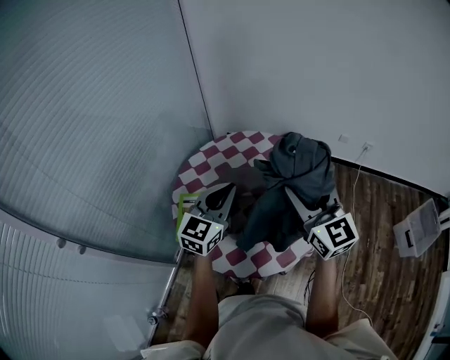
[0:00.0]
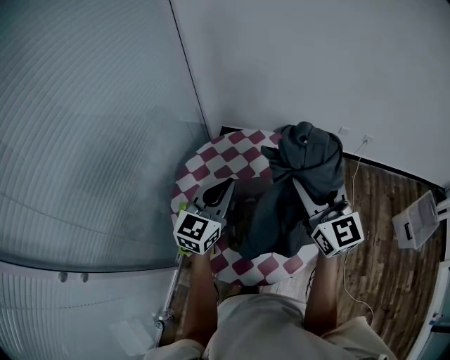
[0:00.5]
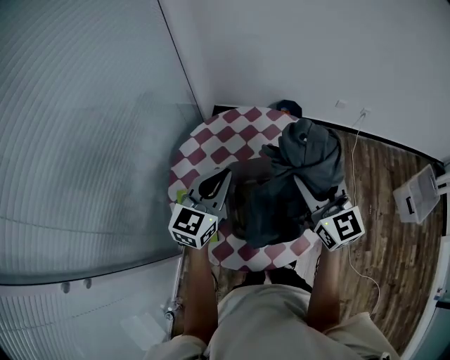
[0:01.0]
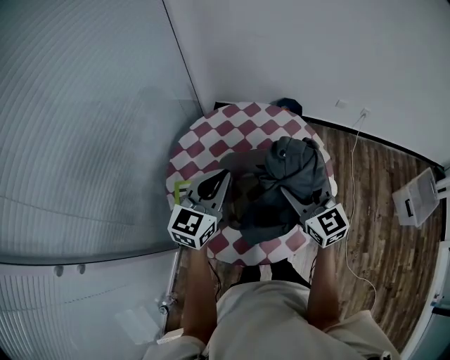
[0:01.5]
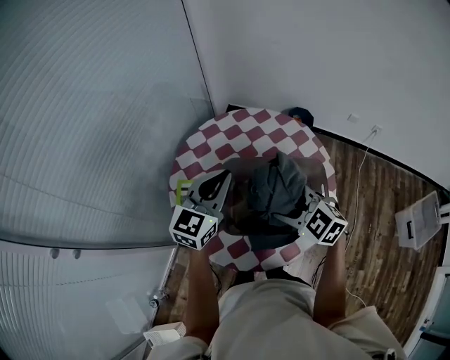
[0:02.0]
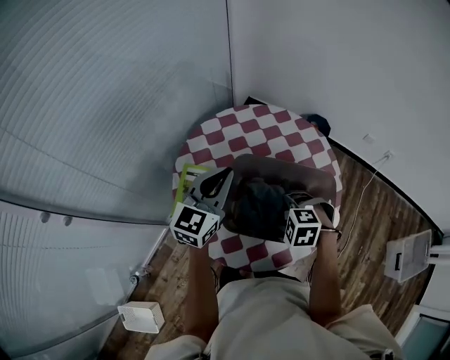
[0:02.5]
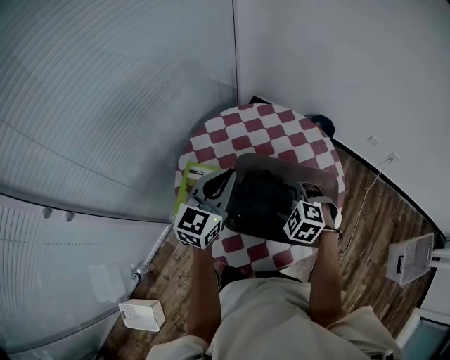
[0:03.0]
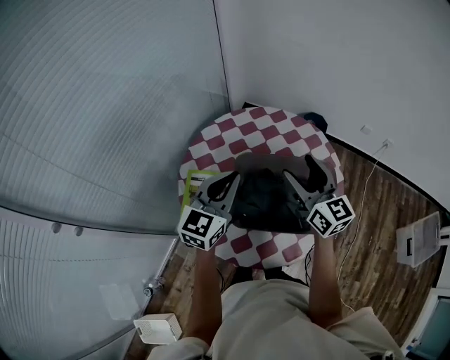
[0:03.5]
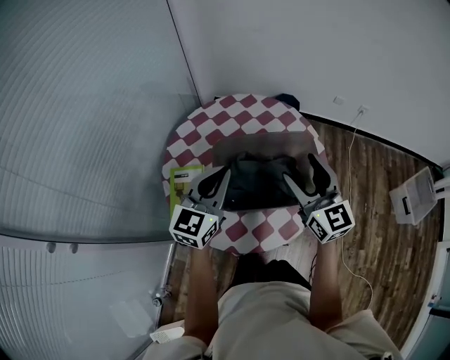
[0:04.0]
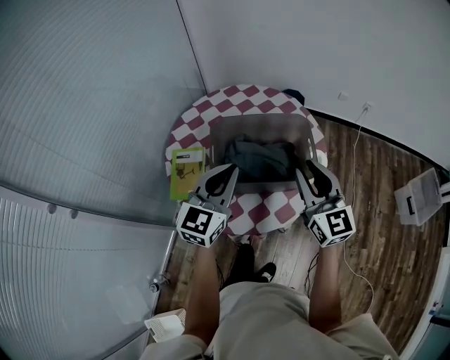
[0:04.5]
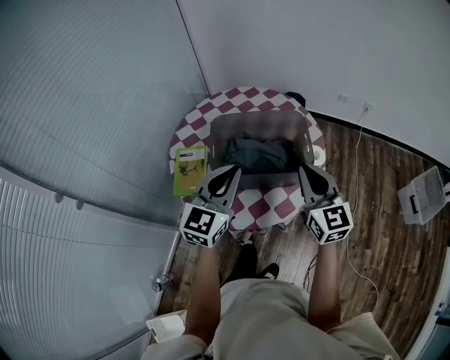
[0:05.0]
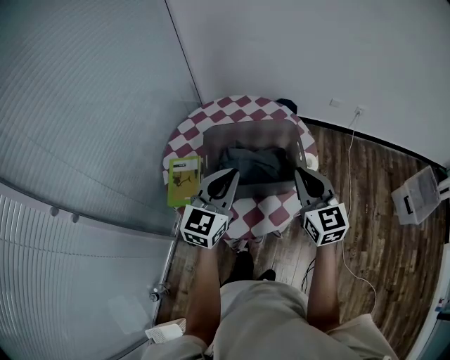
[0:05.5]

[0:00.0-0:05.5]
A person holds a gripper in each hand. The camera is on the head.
0.0 to 2.0 s: The left gripper is displaced forward by roughly 5 cm. The right gripper shifts some 20 cm downward, and points its fingers roughly 40 degrees further downward.
2.0 to 3.5 s: The right gripper travels upward and forward by some 10 cm, angles its fingers upward, by some 40 degrees, and opens its fingers.
3.5 to 5.5 s: The grippers both shift backward and to the right by some 20 cm. The right gripper turns by about 20 degrees, and closes up.

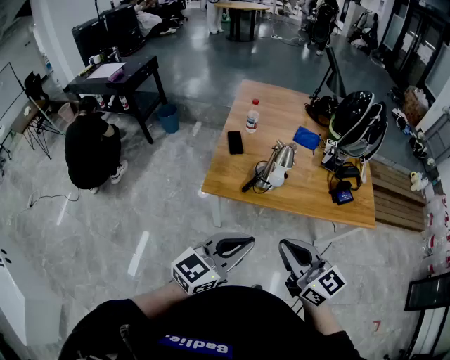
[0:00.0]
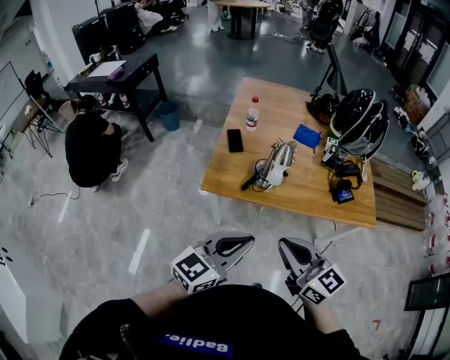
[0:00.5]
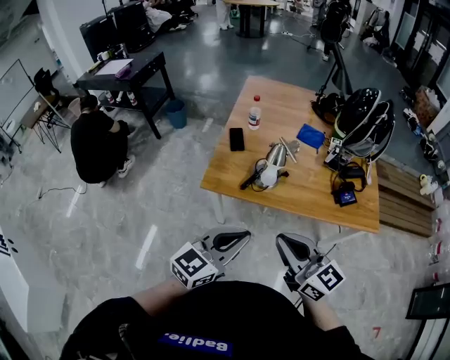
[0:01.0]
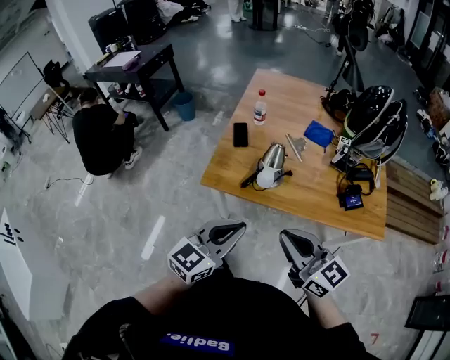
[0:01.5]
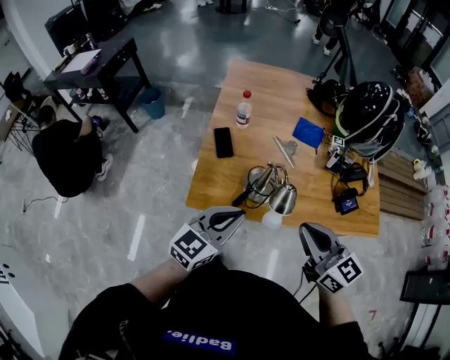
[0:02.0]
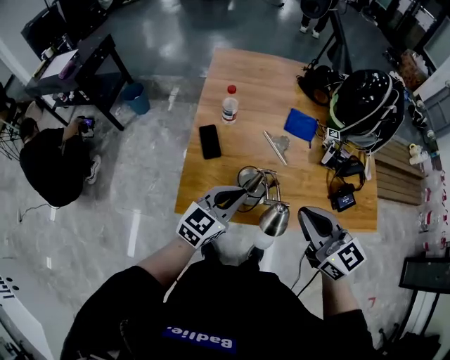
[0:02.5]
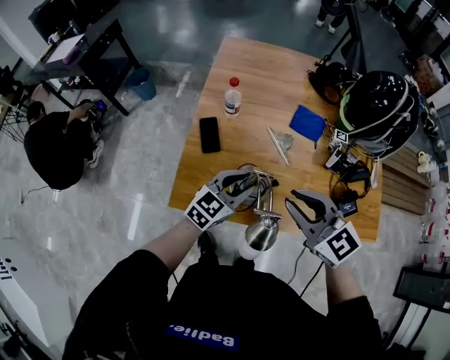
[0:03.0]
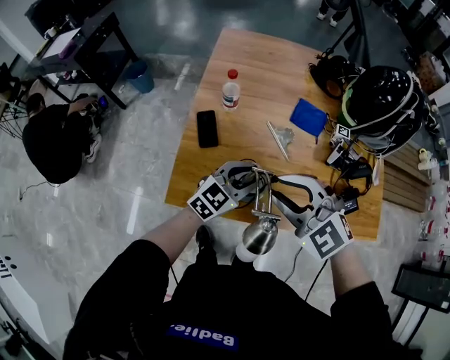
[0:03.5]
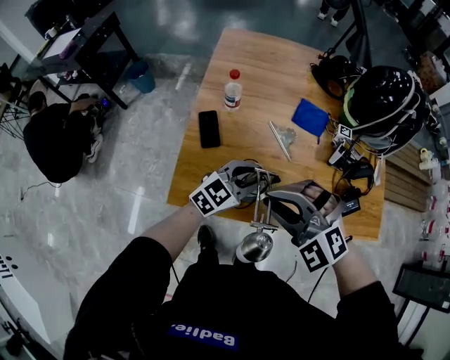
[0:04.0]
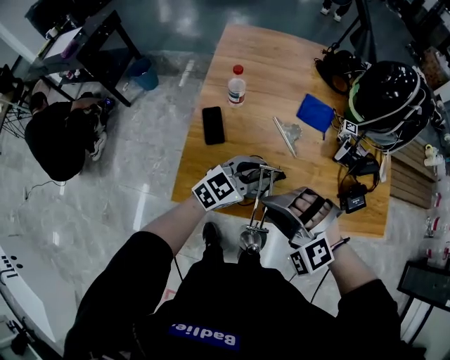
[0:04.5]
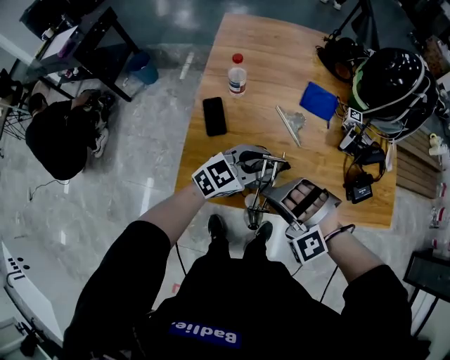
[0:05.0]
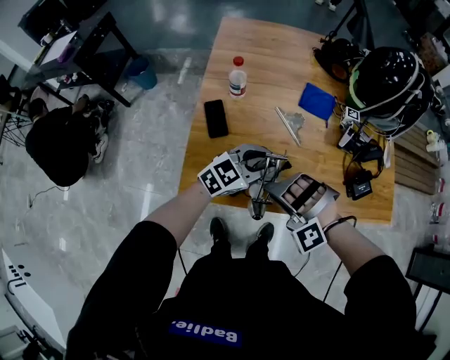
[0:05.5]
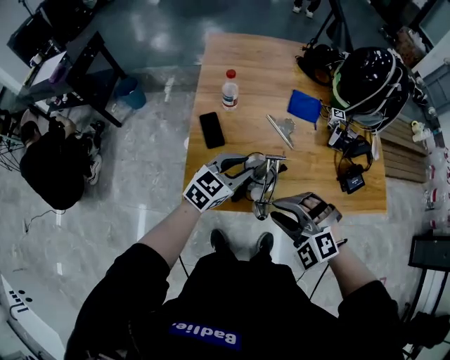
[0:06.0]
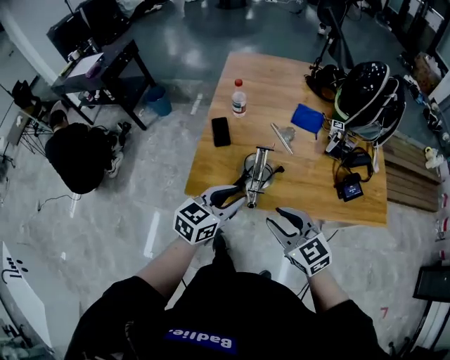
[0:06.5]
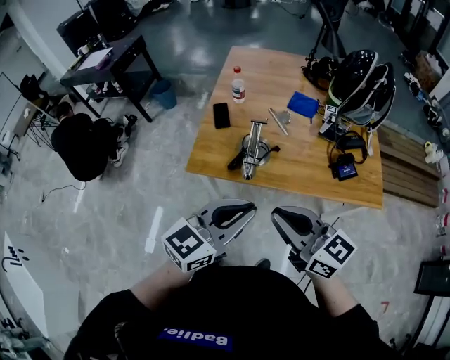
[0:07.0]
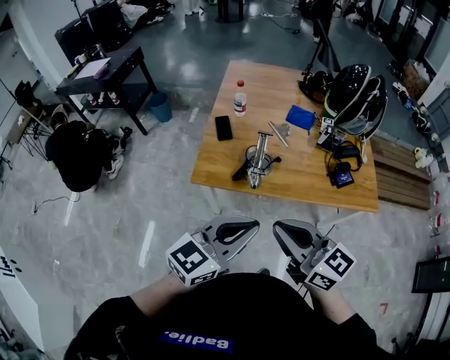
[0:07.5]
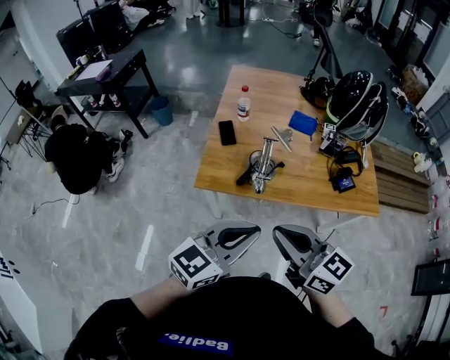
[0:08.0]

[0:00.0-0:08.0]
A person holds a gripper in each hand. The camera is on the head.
0.0 to 2.0 s: The grippers both shift forward by about 20 cm.
2.0 to 4.0 s: The right gripper heads forward and to the left, covering approximately 15 cm, and twists about 60 degrees counterclockwise, seen from behind. The left gripper moves forward, downward and to the right, about 25 cm, and opens its fingers.
4.0 to 6.0 s: The right gripper heads downward and backward, covering about 10 cm. The left gripper travels to the left by approximately 5 cm.
6.0 to 8.0 s: The grippers both shift backward and upward by some 35 cm. The left gripper closes up. The right gripper rolls clockwise, seen from behind, by roughly 60 degrees, and closes its fingers.

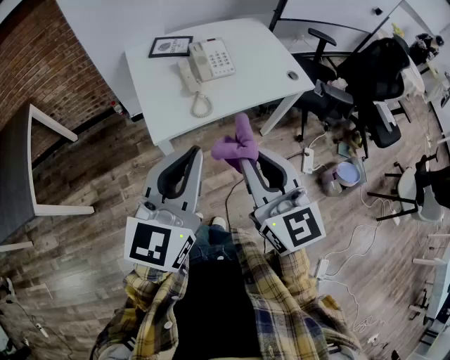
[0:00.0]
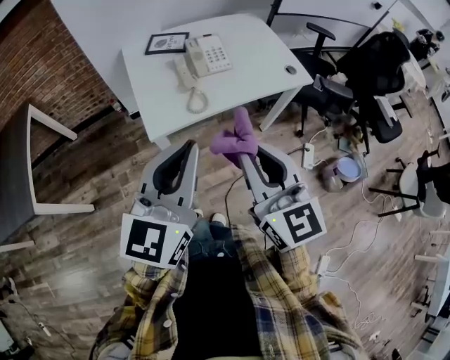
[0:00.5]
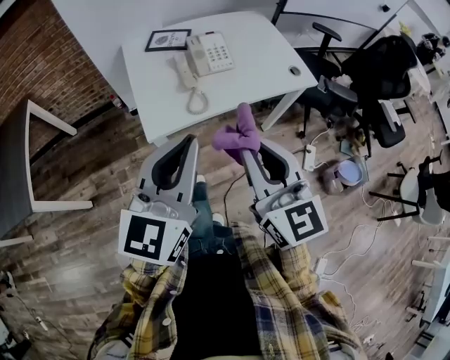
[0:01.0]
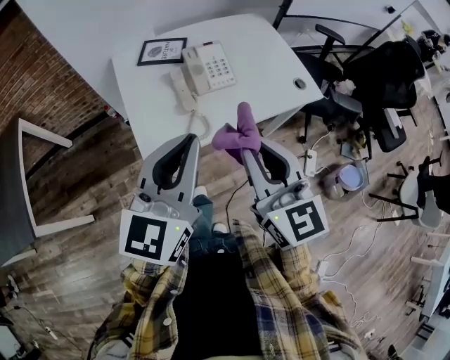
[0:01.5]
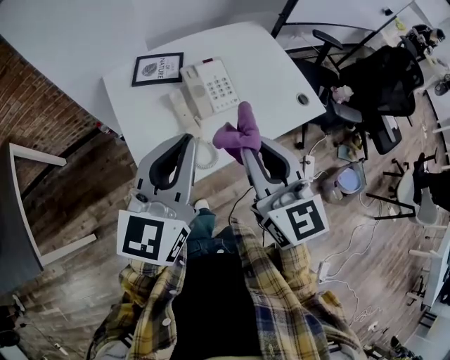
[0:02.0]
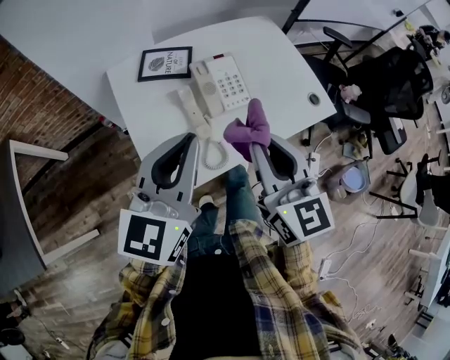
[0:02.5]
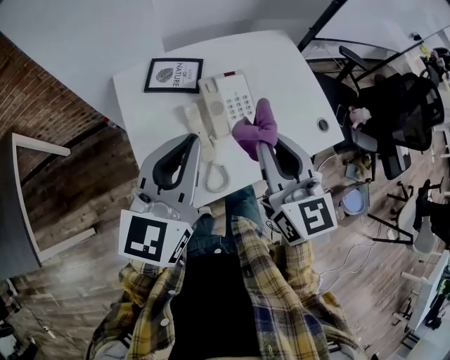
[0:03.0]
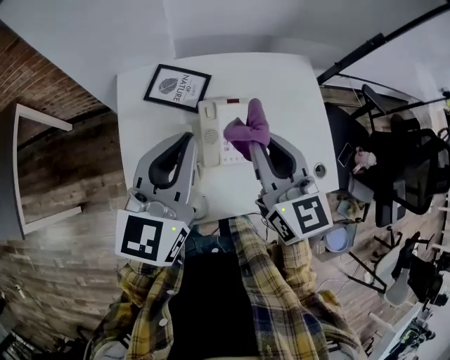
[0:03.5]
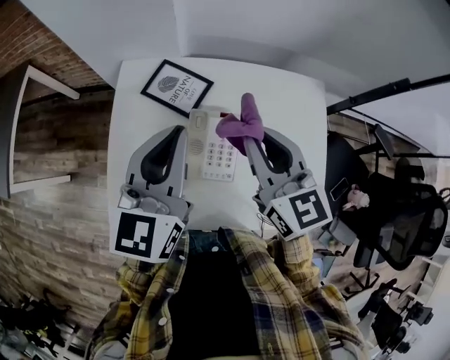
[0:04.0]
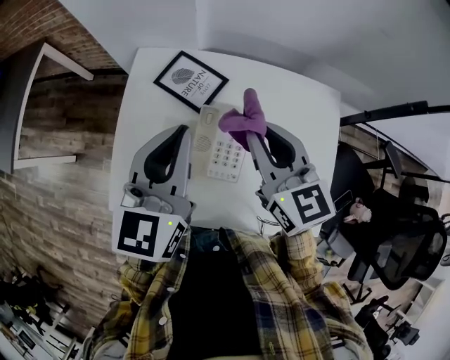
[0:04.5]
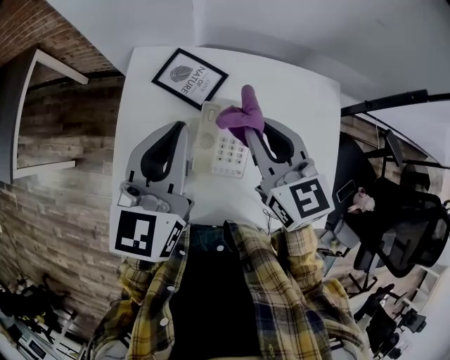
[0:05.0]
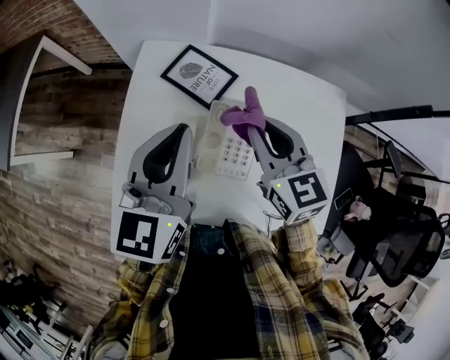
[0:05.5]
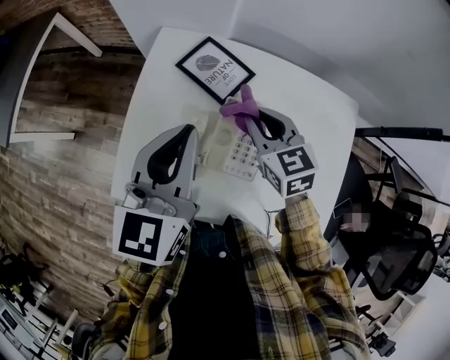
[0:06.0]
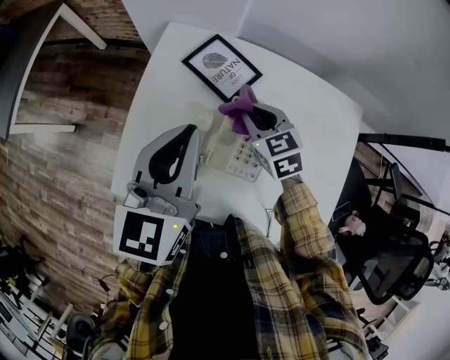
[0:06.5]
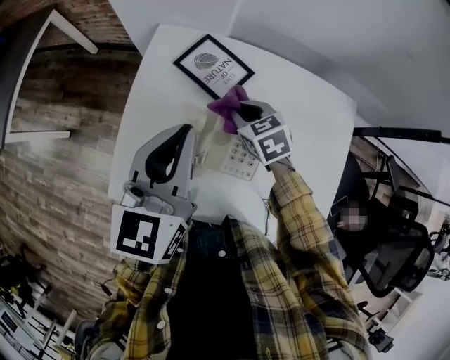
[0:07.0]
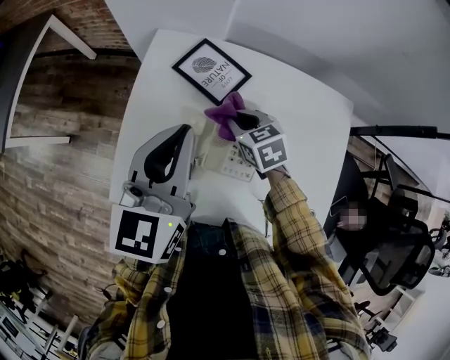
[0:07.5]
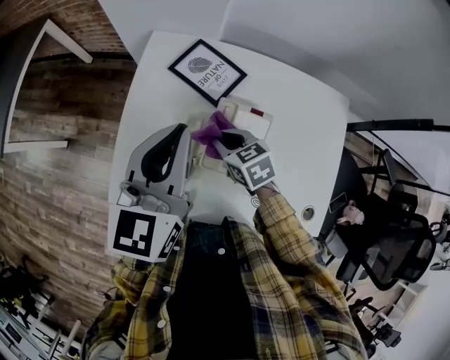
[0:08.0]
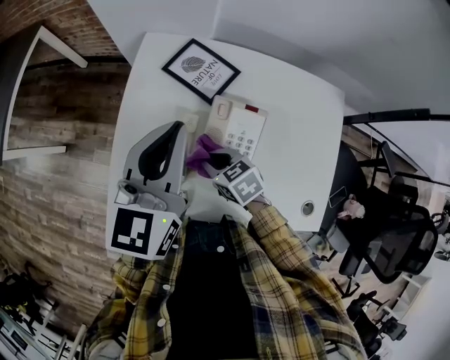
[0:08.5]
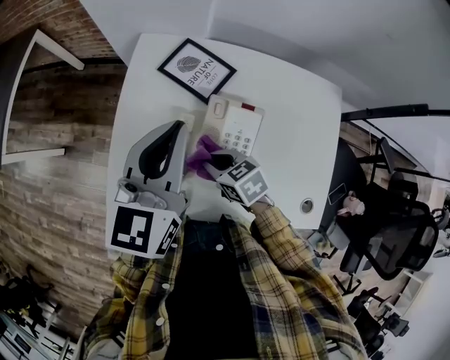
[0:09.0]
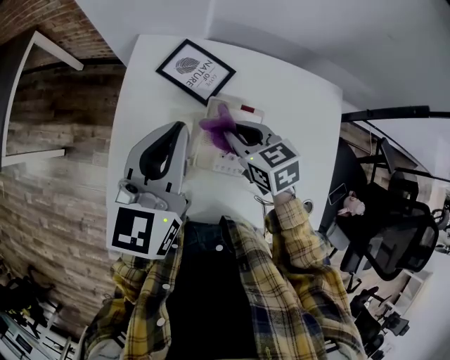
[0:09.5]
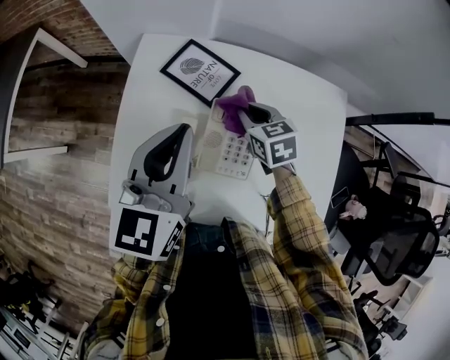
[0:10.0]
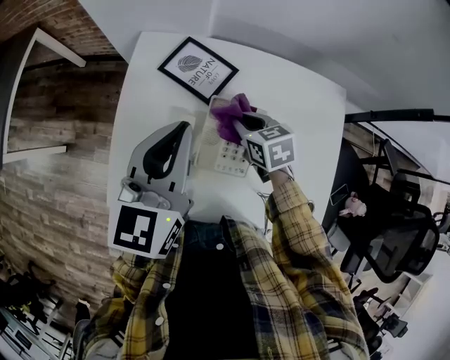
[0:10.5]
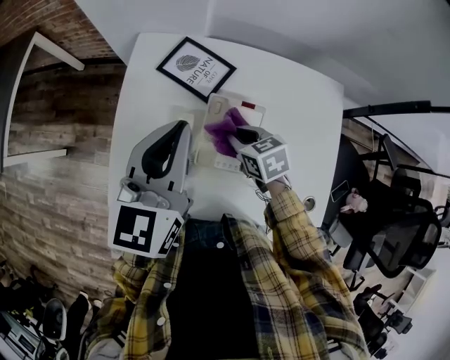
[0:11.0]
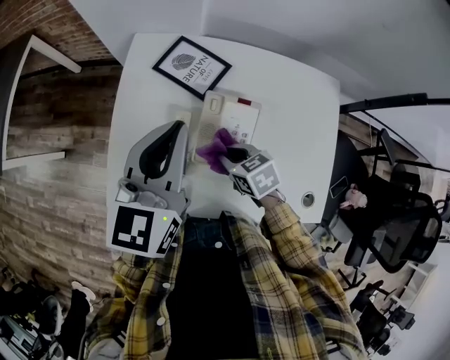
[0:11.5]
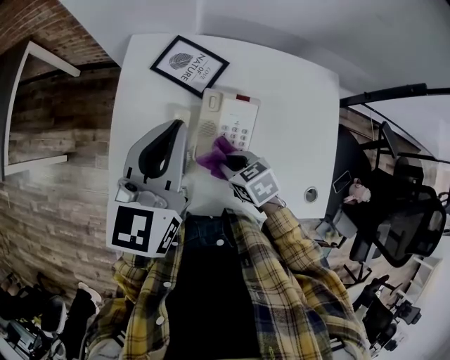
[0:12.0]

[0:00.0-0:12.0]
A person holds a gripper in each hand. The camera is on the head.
0.0 to 2.0 s: The two grippers go roughly 25 cm forward.
2.0 to 4.0 s: The left gripper shifts by some 25 cm, and changes its angle by about 30 degrees; the right gripper moves approximately 30 cm, and changes its angle by some 30 degrees.
4.0 to 6.0 s: The right gripper goes about 15 cm downward, forward and to the left, and changes its angle by some 20 degrees, while the left gripper moves to the left, about 5 cm.
6.0 to 8.0 s: The right gripper shifts roughly 10 cm downward and to the left, and rotates some 20 degrees.
8.0 to 10.0 s: The right gripper goes roughly 10 cm to the right and forward.
10.0 to 12.0 s: The right gripper heads backward and to the left, covering about 20 cm.

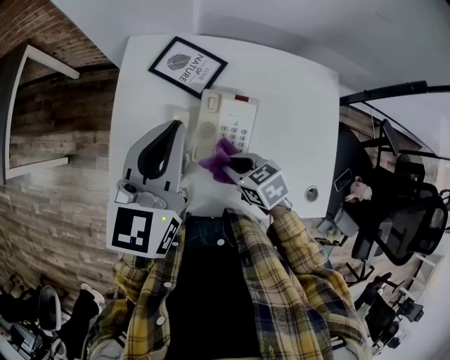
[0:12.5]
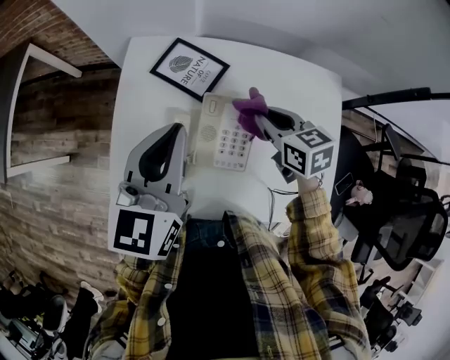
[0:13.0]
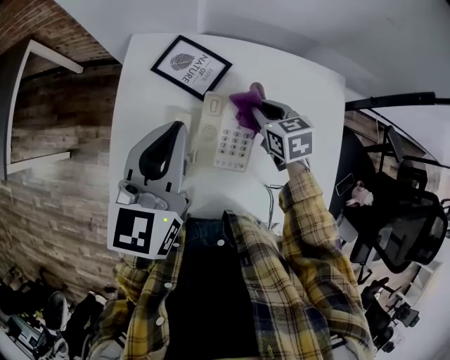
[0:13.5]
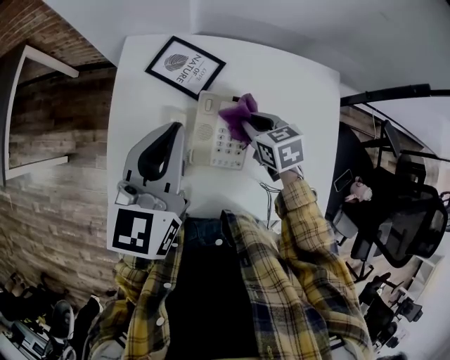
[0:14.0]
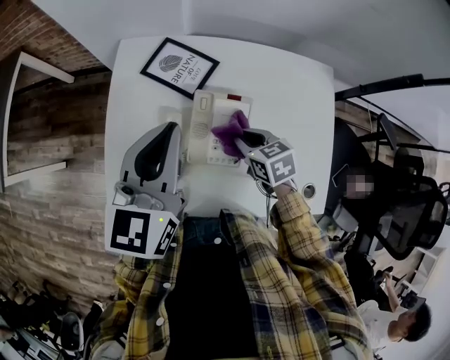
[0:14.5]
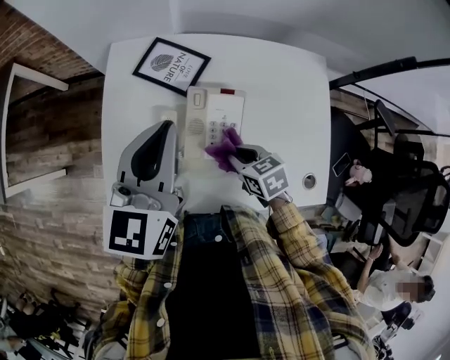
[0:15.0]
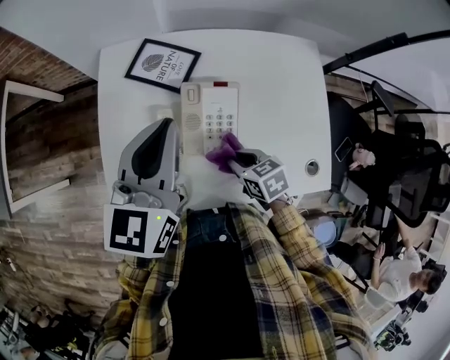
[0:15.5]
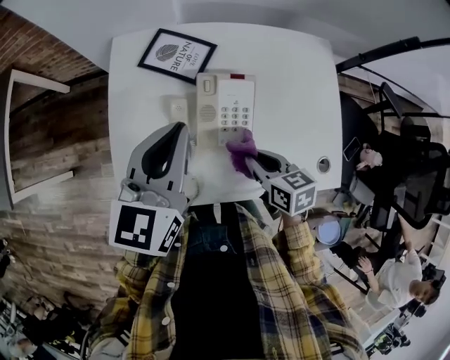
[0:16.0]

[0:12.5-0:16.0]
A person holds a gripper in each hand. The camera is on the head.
12.5 to 14.5 s: The right gripper shifts approximately 10 cm to the right and forward.
14.5 to 16.0 s: The right gripper goes some 10 cm backward, and rotates some 20 degrees.
